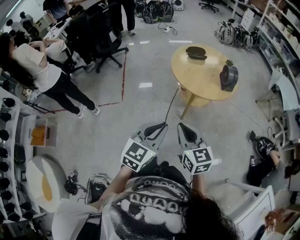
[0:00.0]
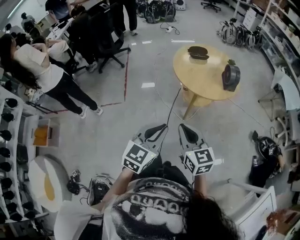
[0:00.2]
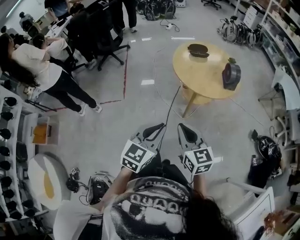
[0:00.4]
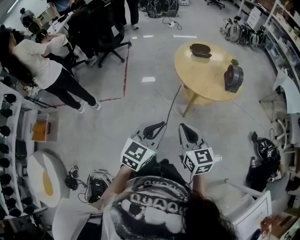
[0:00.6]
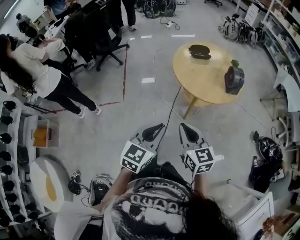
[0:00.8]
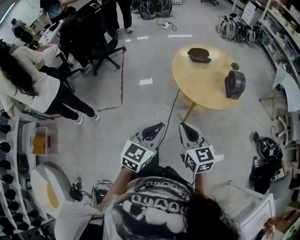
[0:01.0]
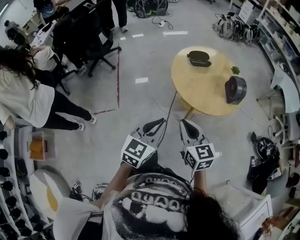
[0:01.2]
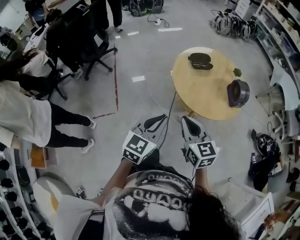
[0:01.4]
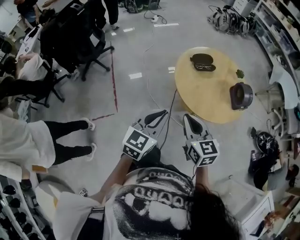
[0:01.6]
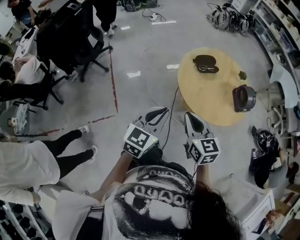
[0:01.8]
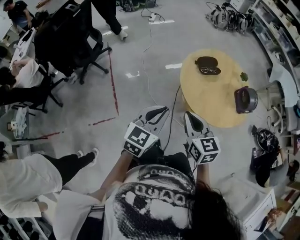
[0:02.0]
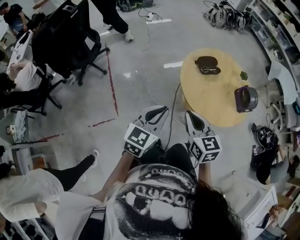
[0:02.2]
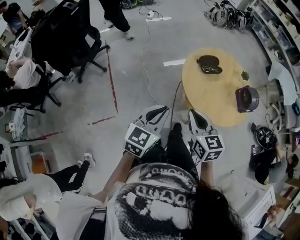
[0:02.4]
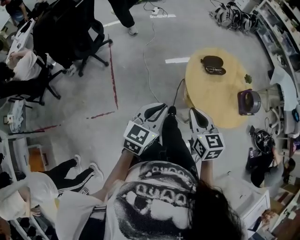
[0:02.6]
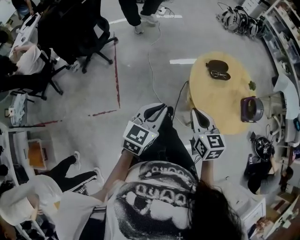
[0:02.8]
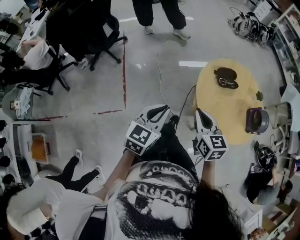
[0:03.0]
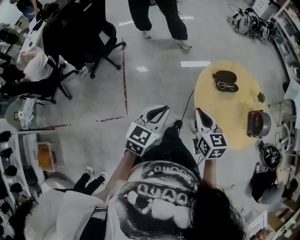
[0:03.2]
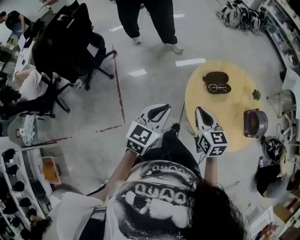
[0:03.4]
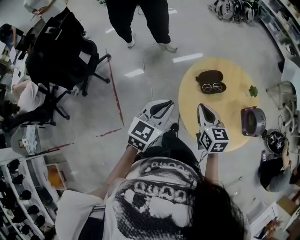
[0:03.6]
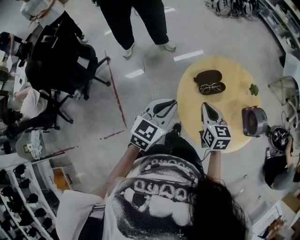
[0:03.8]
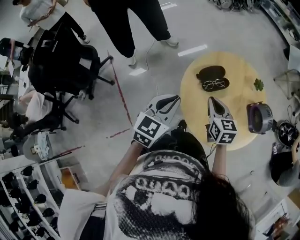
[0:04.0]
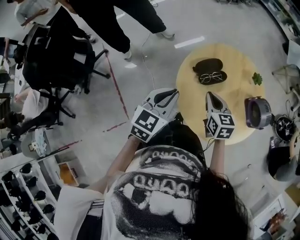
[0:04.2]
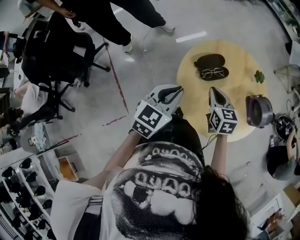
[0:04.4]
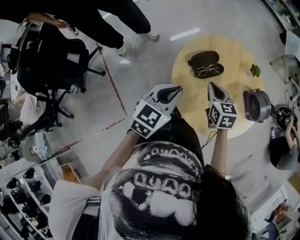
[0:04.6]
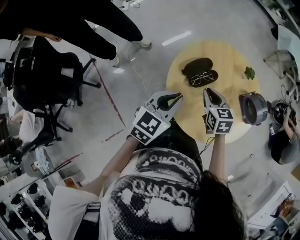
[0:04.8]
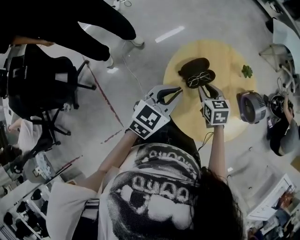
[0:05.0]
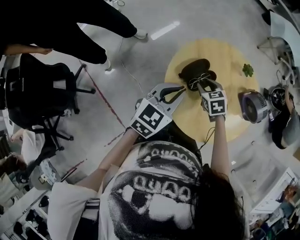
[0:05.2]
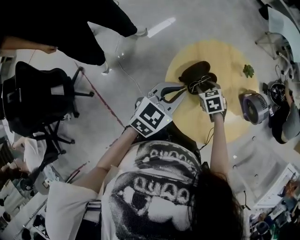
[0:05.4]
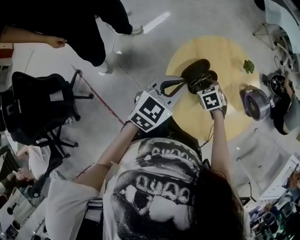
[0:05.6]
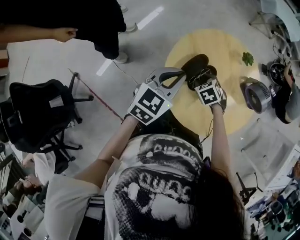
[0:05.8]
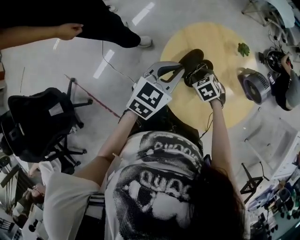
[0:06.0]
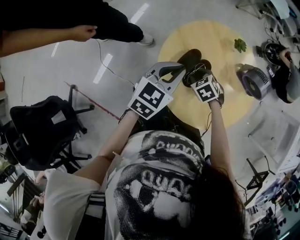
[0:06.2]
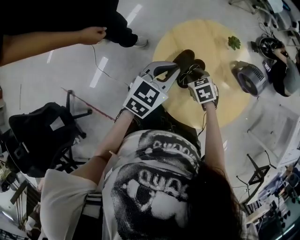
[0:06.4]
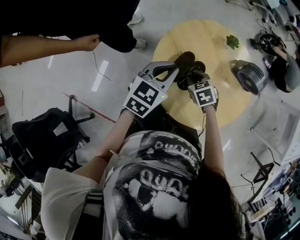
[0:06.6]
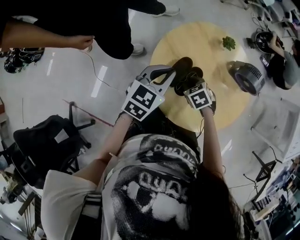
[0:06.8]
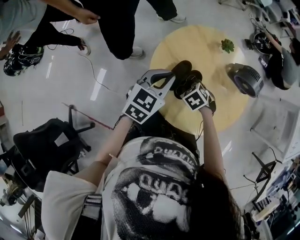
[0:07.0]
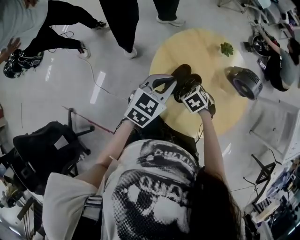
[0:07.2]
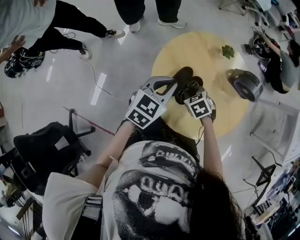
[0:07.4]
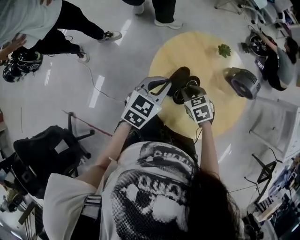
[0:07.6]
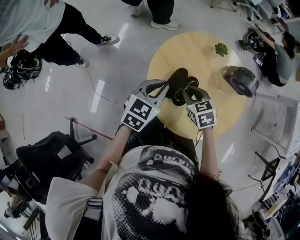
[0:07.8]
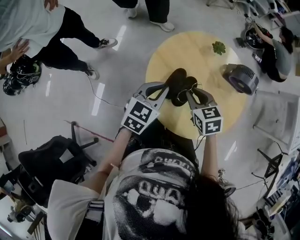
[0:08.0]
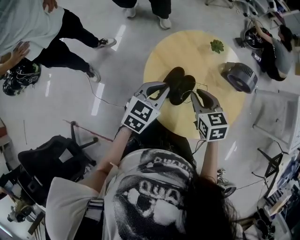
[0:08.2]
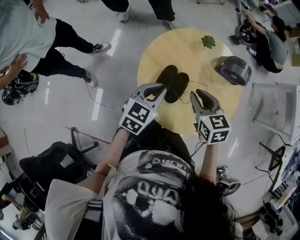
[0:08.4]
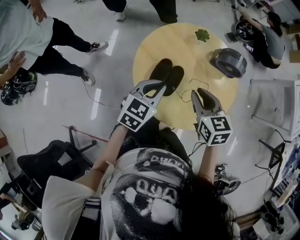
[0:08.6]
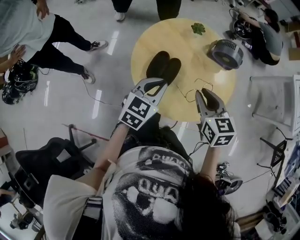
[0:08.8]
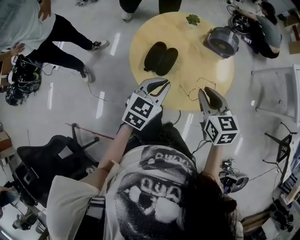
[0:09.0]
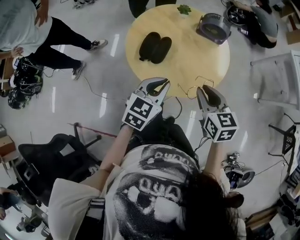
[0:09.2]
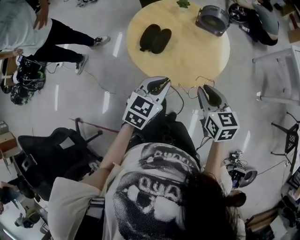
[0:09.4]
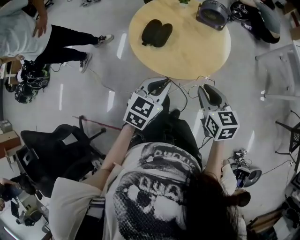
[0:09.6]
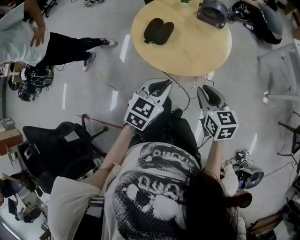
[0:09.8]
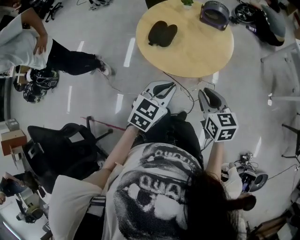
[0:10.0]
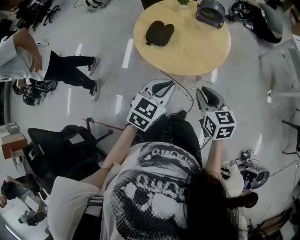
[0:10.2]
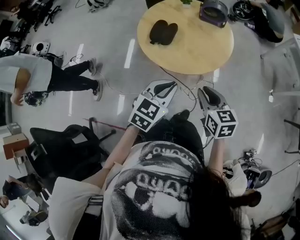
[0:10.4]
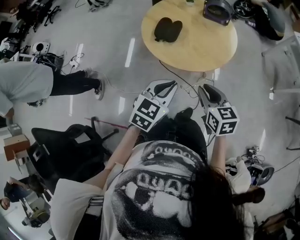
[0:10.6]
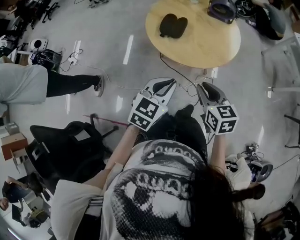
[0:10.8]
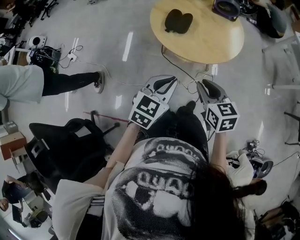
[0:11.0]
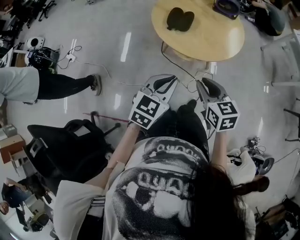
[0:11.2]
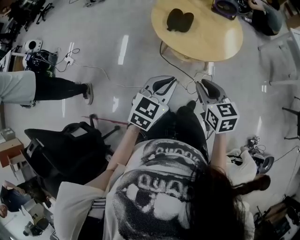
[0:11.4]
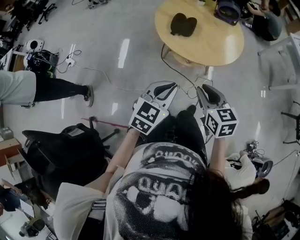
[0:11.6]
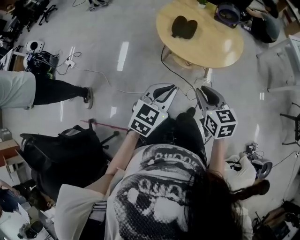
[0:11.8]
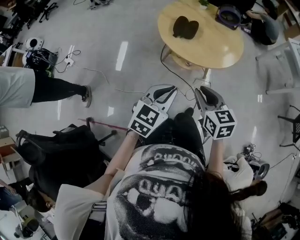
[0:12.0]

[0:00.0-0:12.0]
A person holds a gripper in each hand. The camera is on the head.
0:00.0 to 0:01.6: Both grippers move forward, about 30 cm.
0:01.6 to 0:03.0: The left gripper moves to the left and forward, about 15 cm. Meanwhile the right gripper heads forward and to the left, covering approximately 15 cm.
0:03.0 to 0:04.4: The right gripper goes some 25 cm forward, to the right and downward, and turns by some 20 degrees. The left gripper travels forward and to the right by approximately 25 cm, and changes its angle by about 20 degrees.
0:04.4 to 0:06.0: The right gripper shifts approximately 15 cm downward and forward, tips its fingers downward by approximately 40 degrees, and opens its fingers, while the left gripper heads forward, covering roughly 20 cm, and changes its angle by about 30 degrees.
0:06.0 to 0:07.6: The right gripper changes its angle by about 20 degrees, and closes its fingers.
0:07.6 to 0:09.0: The right gripper travels upward, to the right and backward by about 25 cm, and rotates about 40 degrees; the left gripper heads backward and to the right, covering some 15 cm.
0:09.0 to 0:10.4: The grippers both shift backward by about 20 cm.
0:10.4 to 0:12.0: The grippers both shift to the left and backward by about 15 cm.

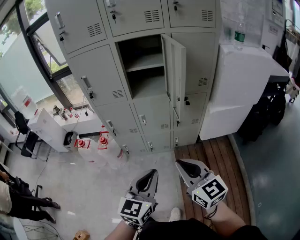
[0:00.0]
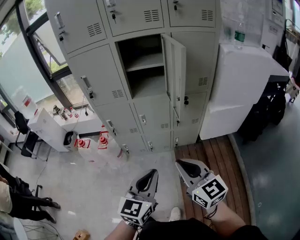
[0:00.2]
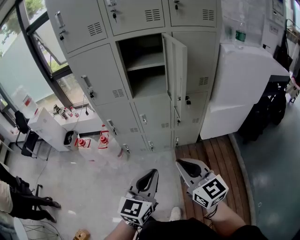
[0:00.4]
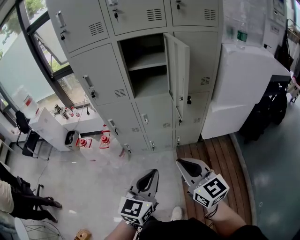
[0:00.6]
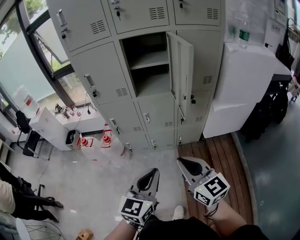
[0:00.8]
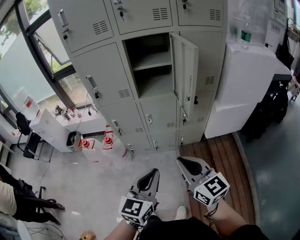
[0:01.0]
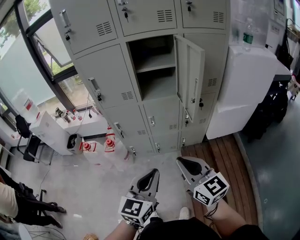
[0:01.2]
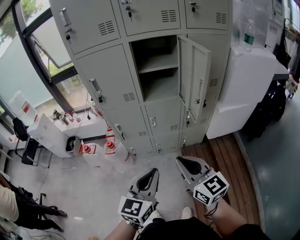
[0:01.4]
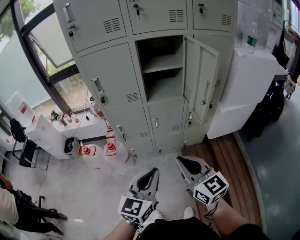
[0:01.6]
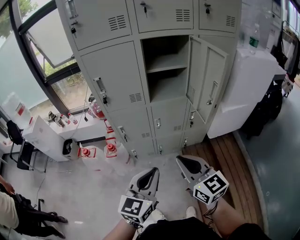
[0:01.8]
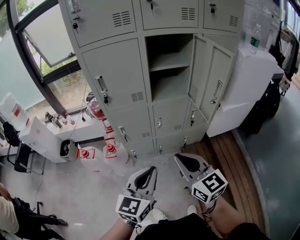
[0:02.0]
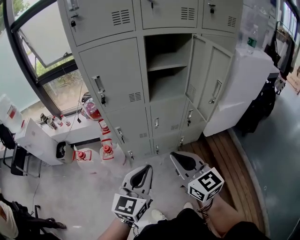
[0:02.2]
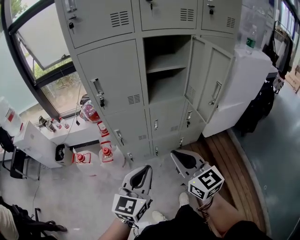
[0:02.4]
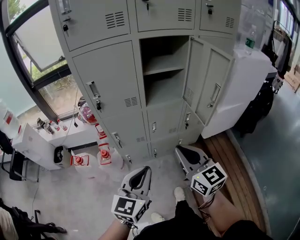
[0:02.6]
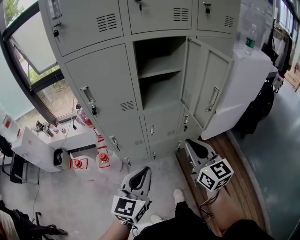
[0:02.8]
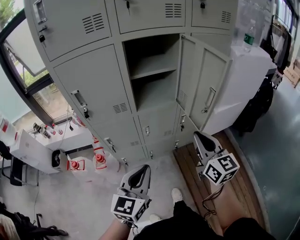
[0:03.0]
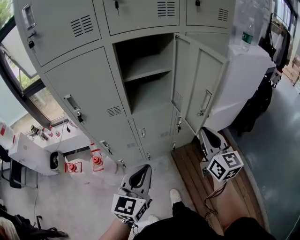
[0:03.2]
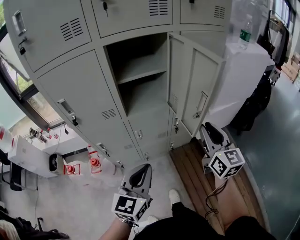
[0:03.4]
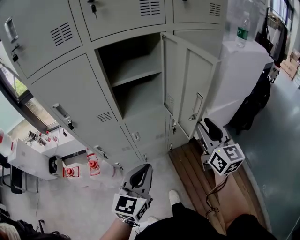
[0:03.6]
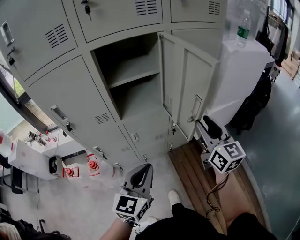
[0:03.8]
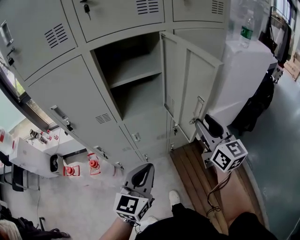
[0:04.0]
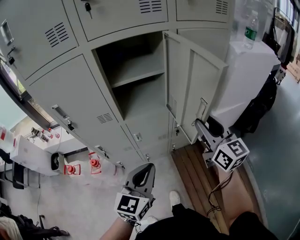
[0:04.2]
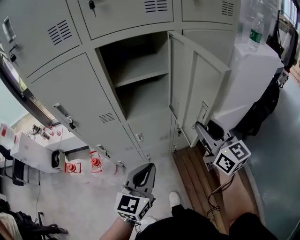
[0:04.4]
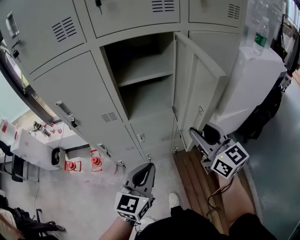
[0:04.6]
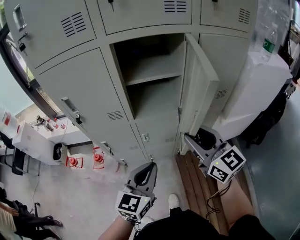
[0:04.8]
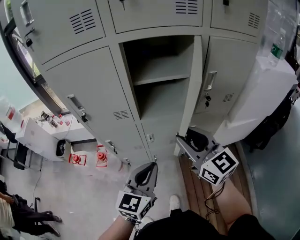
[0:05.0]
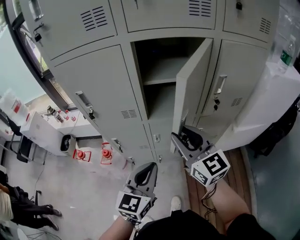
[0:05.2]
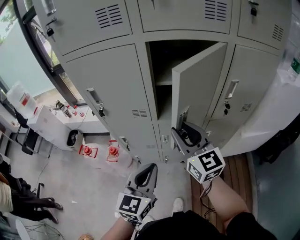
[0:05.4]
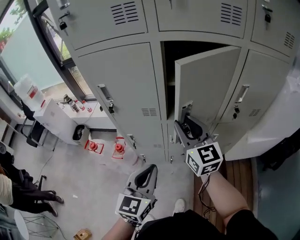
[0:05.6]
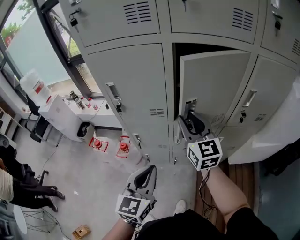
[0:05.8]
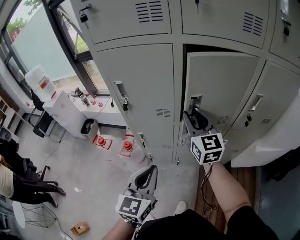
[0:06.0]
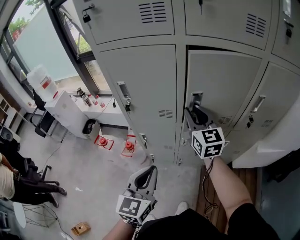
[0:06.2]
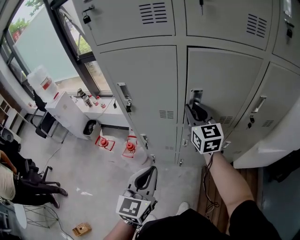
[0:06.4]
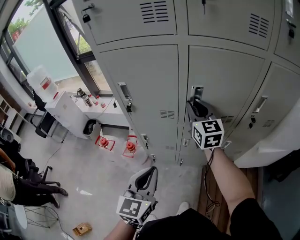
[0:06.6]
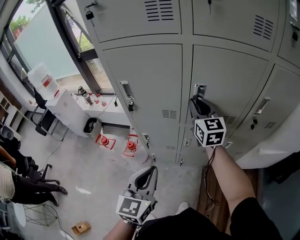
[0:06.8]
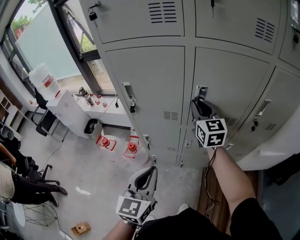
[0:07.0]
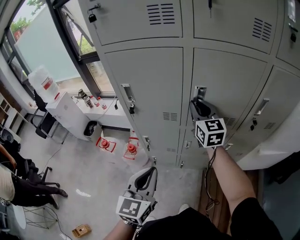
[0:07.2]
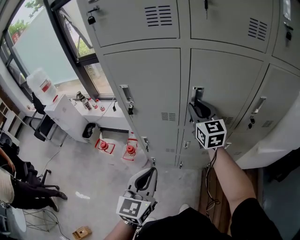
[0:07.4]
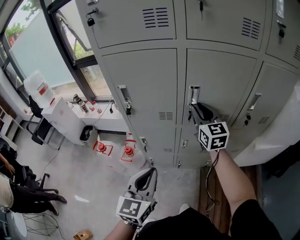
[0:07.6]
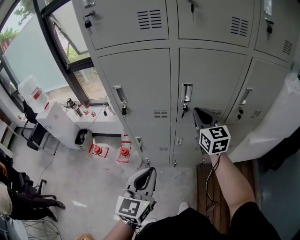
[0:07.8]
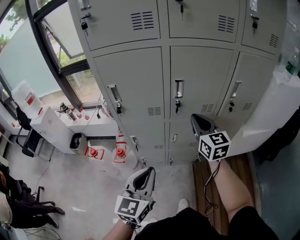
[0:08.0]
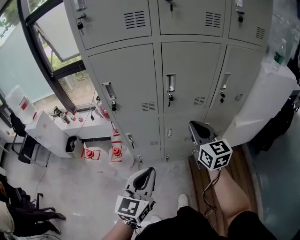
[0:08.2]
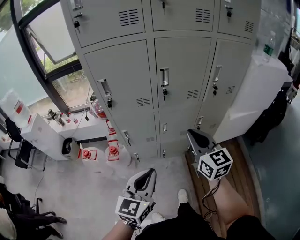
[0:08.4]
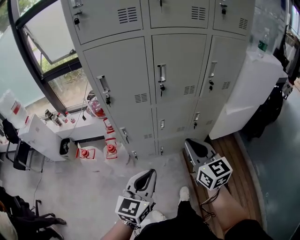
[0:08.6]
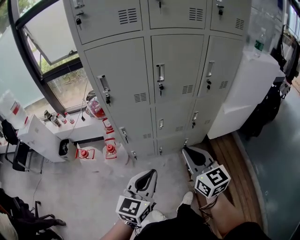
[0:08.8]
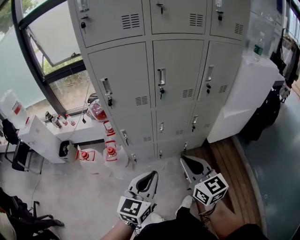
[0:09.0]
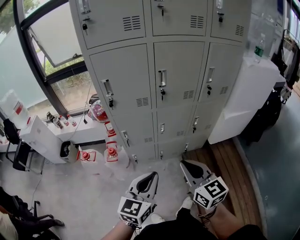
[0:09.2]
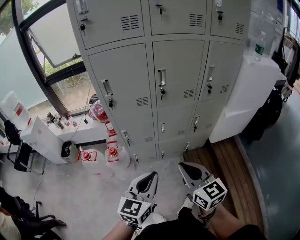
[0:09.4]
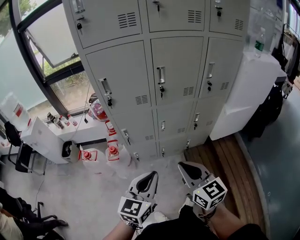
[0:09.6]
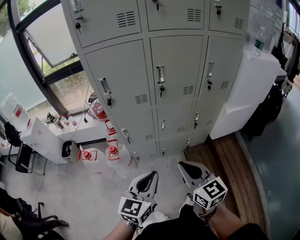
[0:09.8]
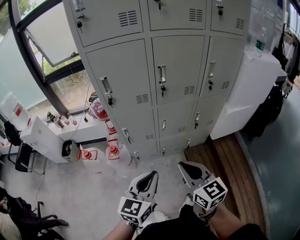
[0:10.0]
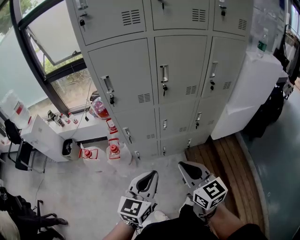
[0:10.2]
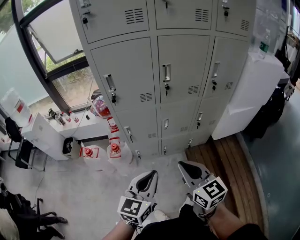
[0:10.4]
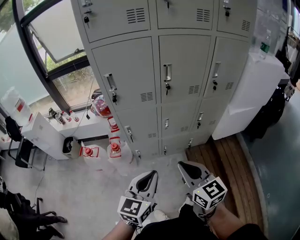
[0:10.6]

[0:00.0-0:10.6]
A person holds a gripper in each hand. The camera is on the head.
0:00.0 to 0:01.6: The two grippers go some 15 cm to the left and forward.
0:01.6 to 0:03.0: The right gripper shifts approximately 15 cm forward and to the right, and swivels roughly 20 degrees, while the left gripper travels forward by about 10 cm.
0:03.0 to 0:04.6: The right gripper heads forward, covering approximately 10 cm, and opens, while the left gripper shifts about 10 cm forward and to the right.
0:04.6 to 0:06.0: The right gripper heads to the left and forward, covering roughly 25 cm. The left gripper shifts about 15 cm to the left, and rotates some 20 degrees.
0:07.6 to 0:09.0: The left gripper heads backward, covering some 15 cm, and changes its angle by about 20 degrees. The right gripper travels backward by about 40 cm, and closes up.
0:09.0 to 0:10.6: The grippers move only a little.

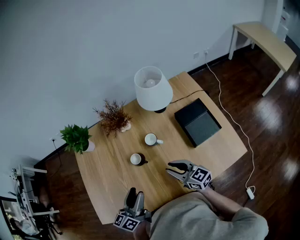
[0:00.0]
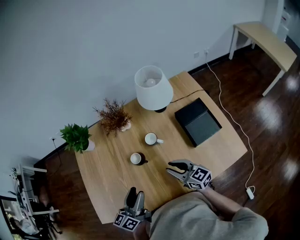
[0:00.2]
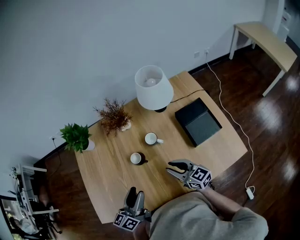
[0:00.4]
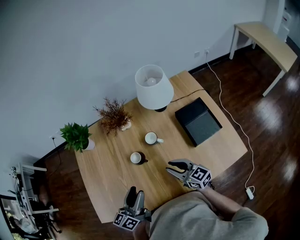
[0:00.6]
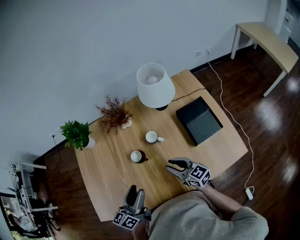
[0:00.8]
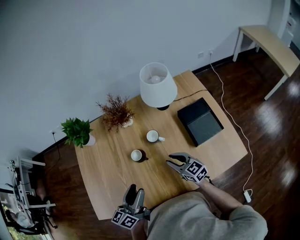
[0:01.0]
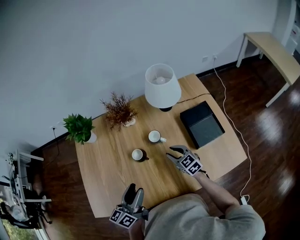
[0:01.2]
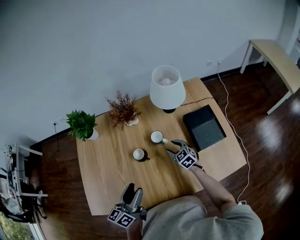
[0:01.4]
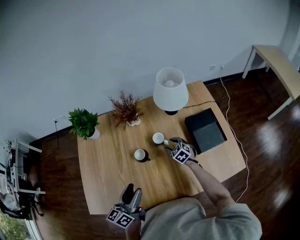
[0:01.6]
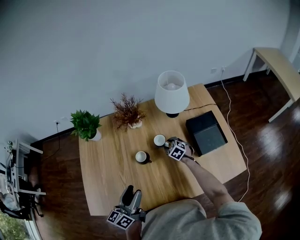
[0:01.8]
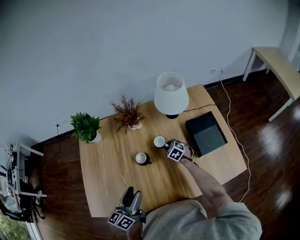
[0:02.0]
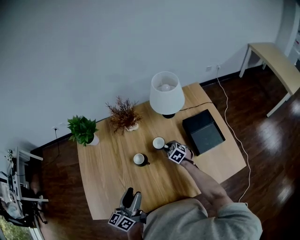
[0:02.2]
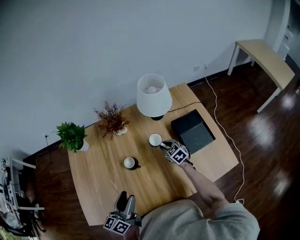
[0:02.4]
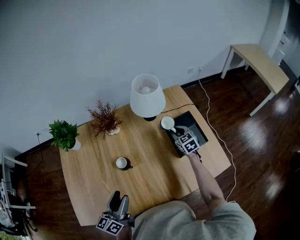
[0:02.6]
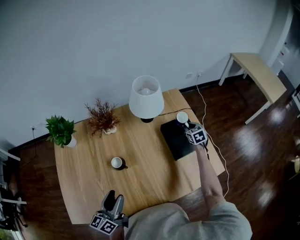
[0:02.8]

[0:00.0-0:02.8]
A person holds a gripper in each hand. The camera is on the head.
0:00.0 to 0:01.4: The right gripper shifts about 15 cm downward and forward, changes its angle by approximately 40 degrees, and opens up.
0:01.4 to 0:02.8: The right gripper travels to the right by about 30 cm, swivels approximately 30 degrees, and closes up.
